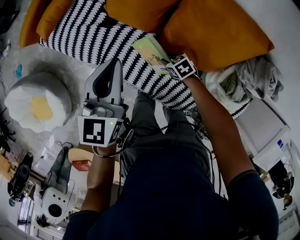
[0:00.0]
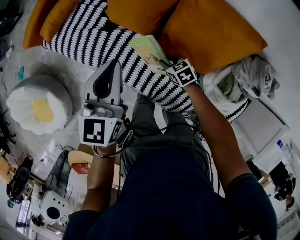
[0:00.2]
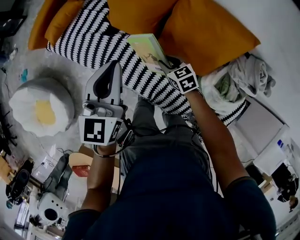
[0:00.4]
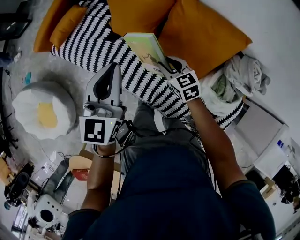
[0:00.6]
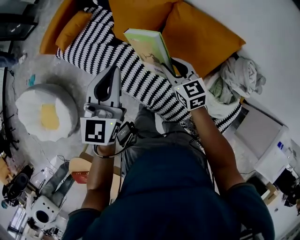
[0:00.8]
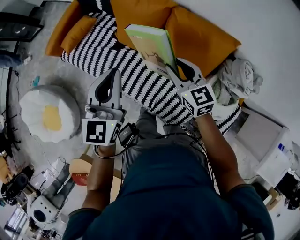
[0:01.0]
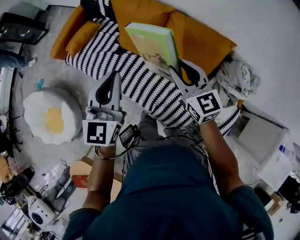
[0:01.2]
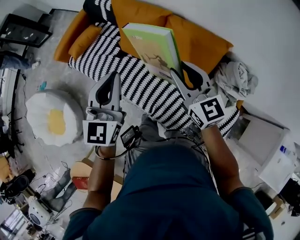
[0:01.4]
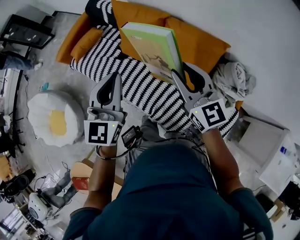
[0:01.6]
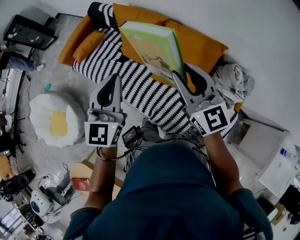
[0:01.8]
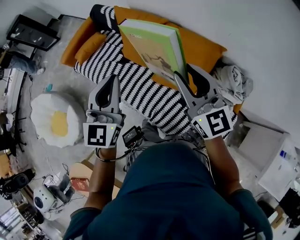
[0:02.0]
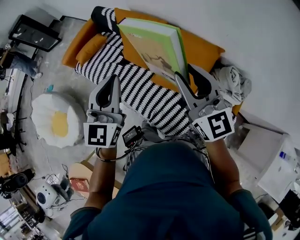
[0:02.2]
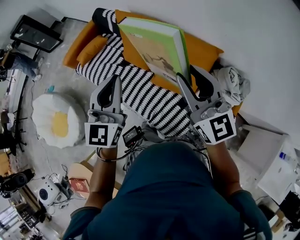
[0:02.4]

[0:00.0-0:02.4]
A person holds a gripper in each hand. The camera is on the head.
0:00.0 to 0:01.2: The right gripper goes approximately 40 cm upward, and tilts its fingers roughly 50 degrees upward. Meanwhile the left gripper heads upward and backward, covering about 20 cm.
0:01.2 to 0:02.4: The left gripper goes approximately 10 cm upward and backward, while the right gripper is displaced upward and backward by approximately 20 cm, and rotates about 20 degrees.

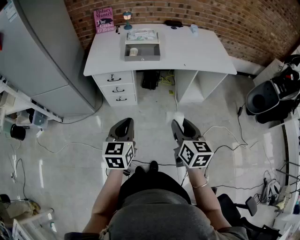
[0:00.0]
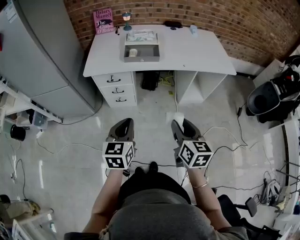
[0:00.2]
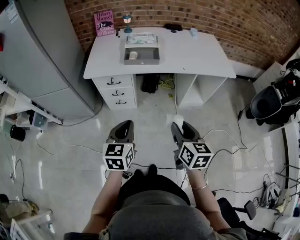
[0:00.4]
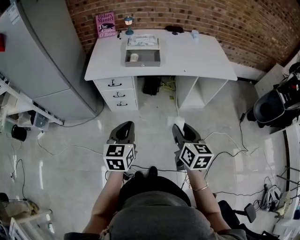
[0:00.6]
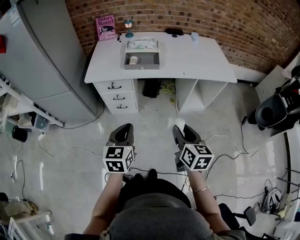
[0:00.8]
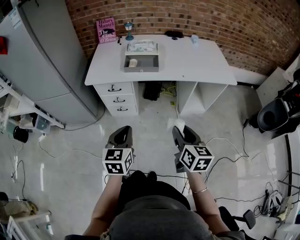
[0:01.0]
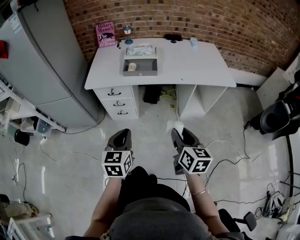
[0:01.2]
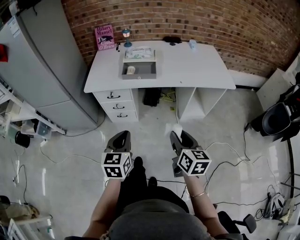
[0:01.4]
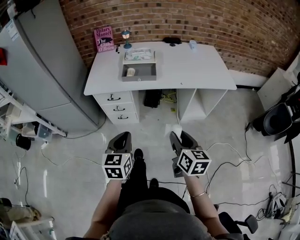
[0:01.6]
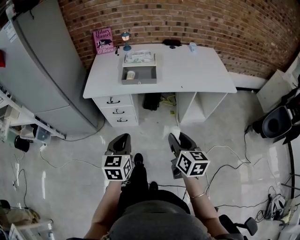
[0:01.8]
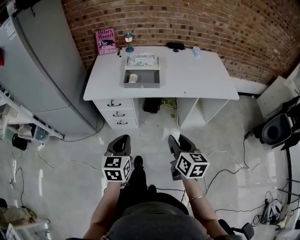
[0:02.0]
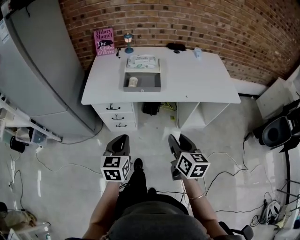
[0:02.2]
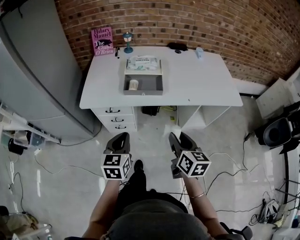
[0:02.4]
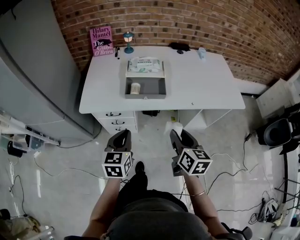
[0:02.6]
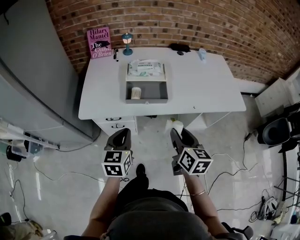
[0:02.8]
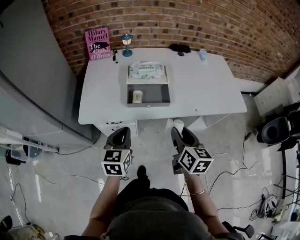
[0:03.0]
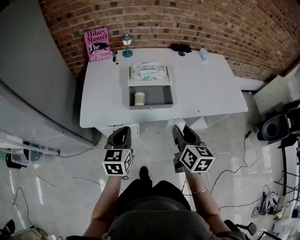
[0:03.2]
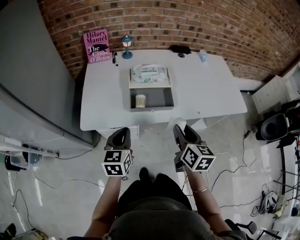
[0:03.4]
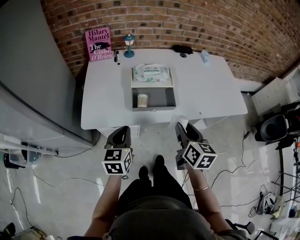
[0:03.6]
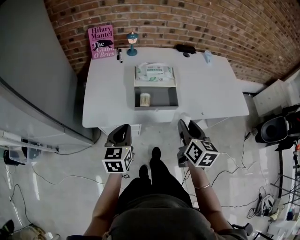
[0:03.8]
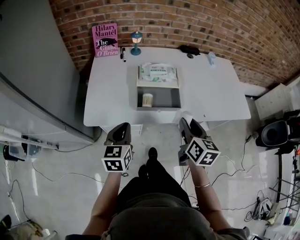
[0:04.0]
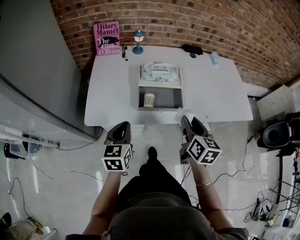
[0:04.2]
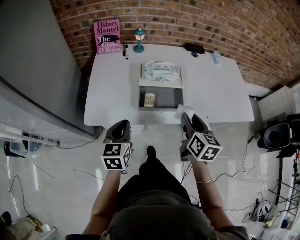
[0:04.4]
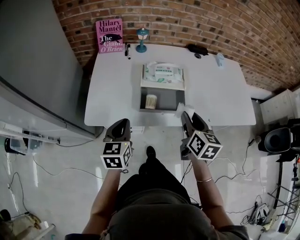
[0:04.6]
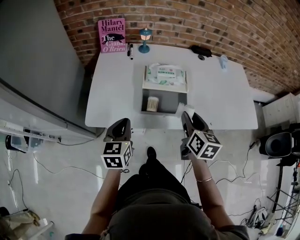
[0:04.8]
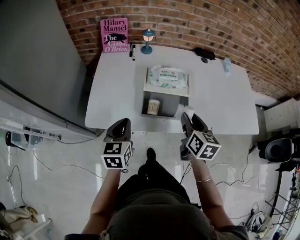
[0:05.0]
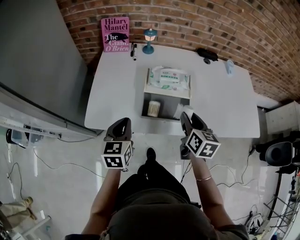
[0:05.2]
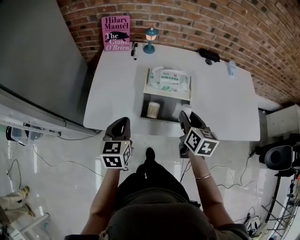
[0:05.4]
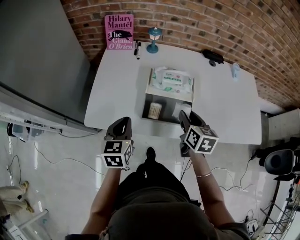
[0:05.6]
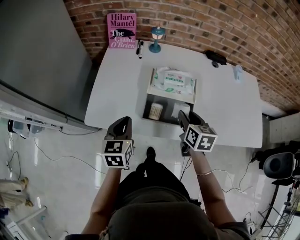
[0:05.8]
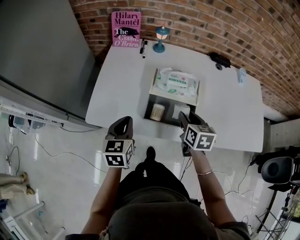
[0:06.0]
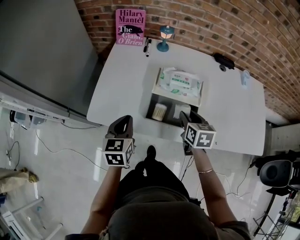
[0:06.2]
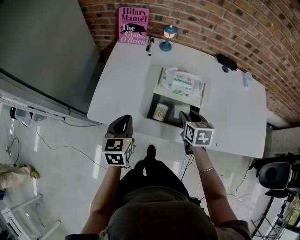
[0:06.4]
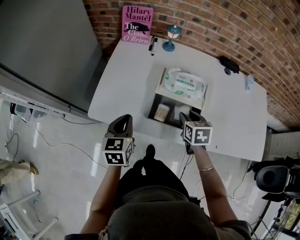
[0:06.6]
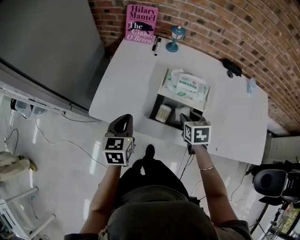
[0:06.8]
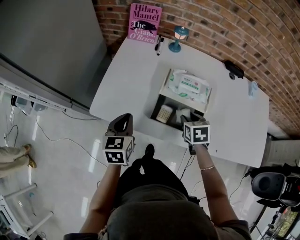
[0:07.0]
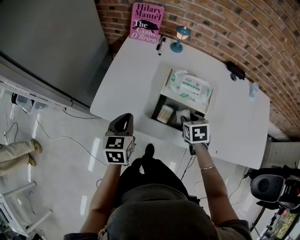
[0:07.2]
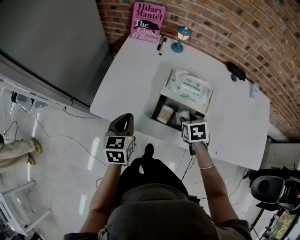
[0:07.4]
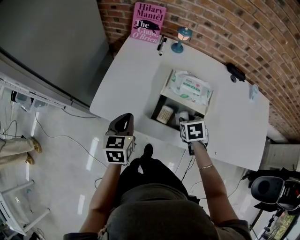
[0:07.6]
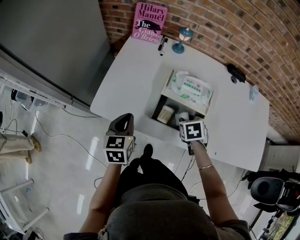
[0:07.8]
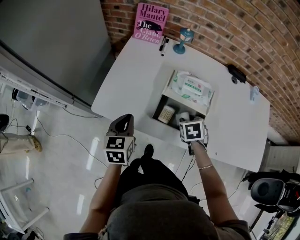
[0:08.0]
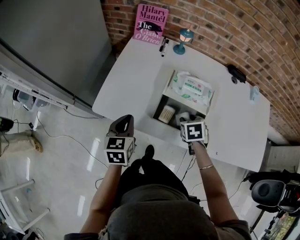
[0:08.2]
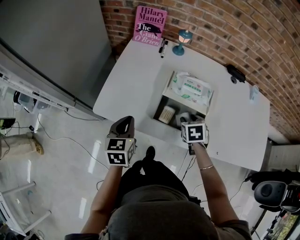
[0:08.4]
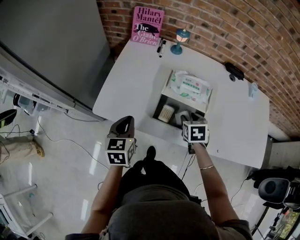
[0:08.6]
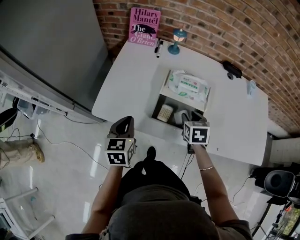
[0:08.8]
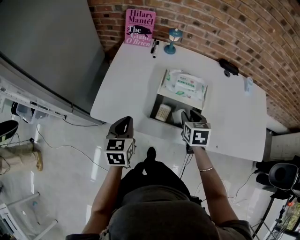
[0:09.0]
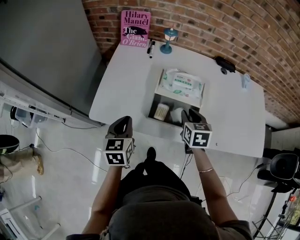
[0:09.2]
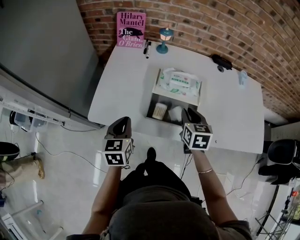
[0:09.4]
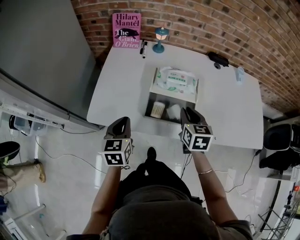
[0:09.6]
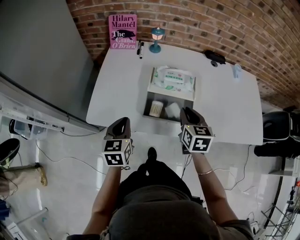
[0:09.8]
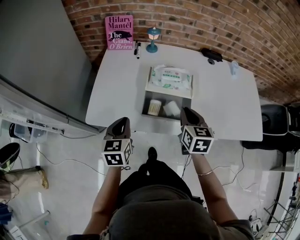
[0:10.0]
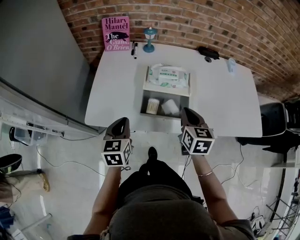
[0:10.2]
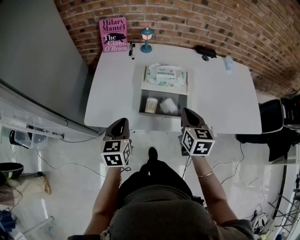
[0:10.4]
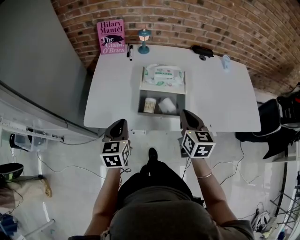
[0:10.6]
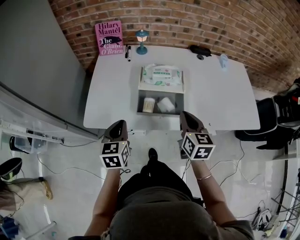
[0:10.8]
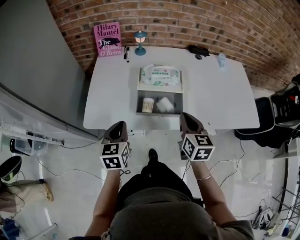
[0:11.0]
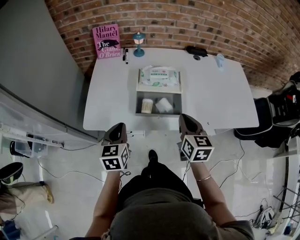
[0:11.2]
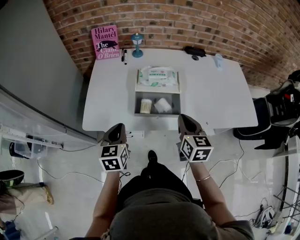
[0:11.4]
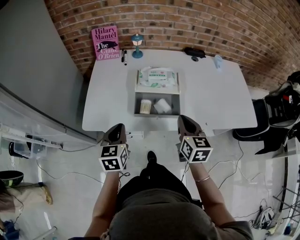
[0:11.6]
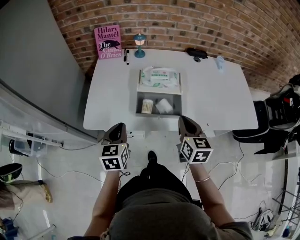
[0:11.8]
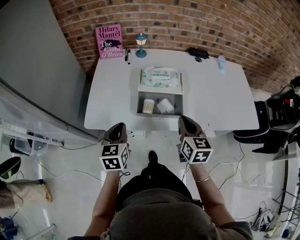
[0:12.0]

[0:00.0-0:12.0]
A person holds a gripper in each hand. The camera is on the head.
0:00.0 to 0:01.6: The right gripper changes place by some 5 cm.
0:01.6 to 0:03.0: Both grippers move forward, some 25 cm.
0:03.0 to 0:04.4: The right gripper is displaced forward by about 10 cm; the left gripper travels forward and to the left by about 10 cm.
0:04.4 to 0:06.0: The left gripper heads forward, covering about 5 cm; the right gripper moves forward and downward, roughly 15 cm, and rotates about 20 degrees.
0:06.0 to 0:07.6: The right gripper heads downward, covering approximately 10 cm, and turns by approximately 40 degrees.
0:07.6 to 0:09.0: The right gripper moves upward, roughly 5 cm, and turns by roughly 20 degrees.
0:09.0 to 0:10.4: The right gripper is displaced backward and upward by roughly 10 cm, turns by approximately 20 degrees, and closes its fingers.
0:10.4 to 0:12.0: The grippers move only a little.

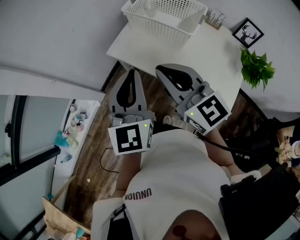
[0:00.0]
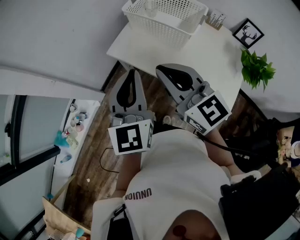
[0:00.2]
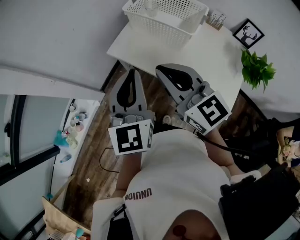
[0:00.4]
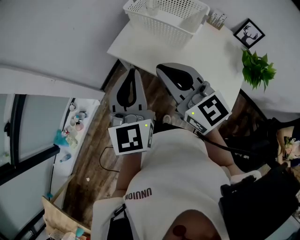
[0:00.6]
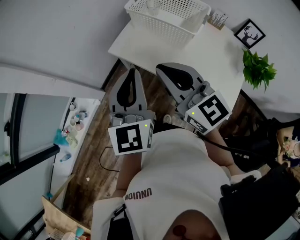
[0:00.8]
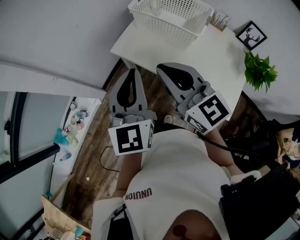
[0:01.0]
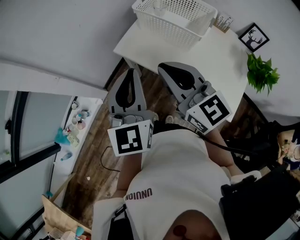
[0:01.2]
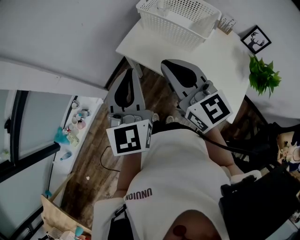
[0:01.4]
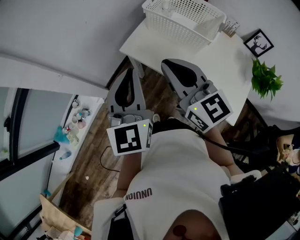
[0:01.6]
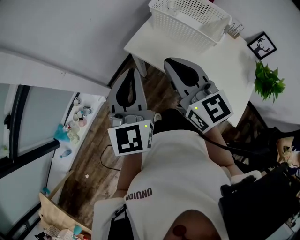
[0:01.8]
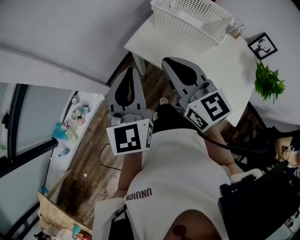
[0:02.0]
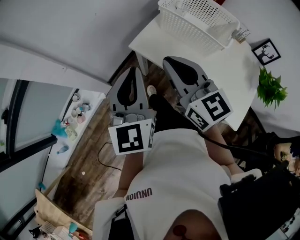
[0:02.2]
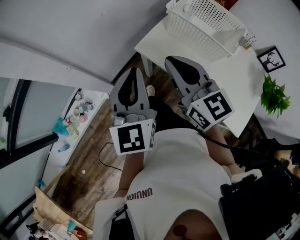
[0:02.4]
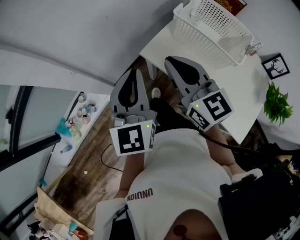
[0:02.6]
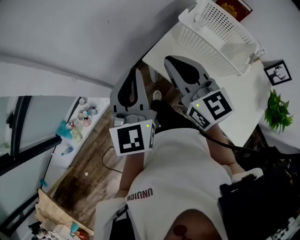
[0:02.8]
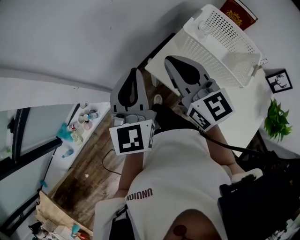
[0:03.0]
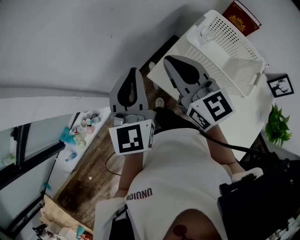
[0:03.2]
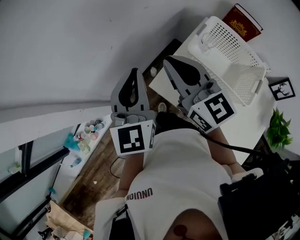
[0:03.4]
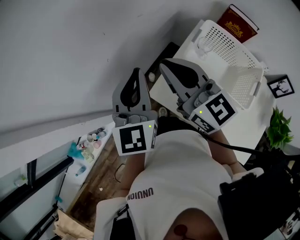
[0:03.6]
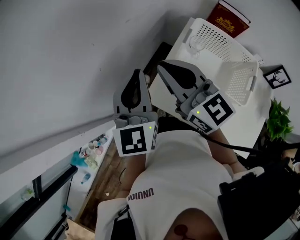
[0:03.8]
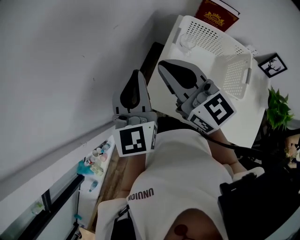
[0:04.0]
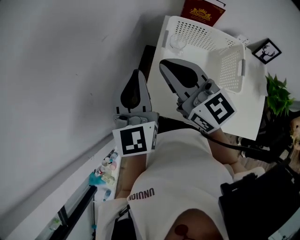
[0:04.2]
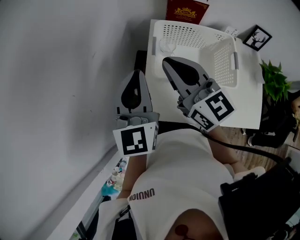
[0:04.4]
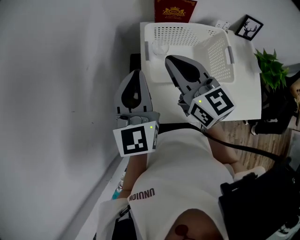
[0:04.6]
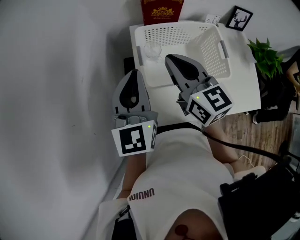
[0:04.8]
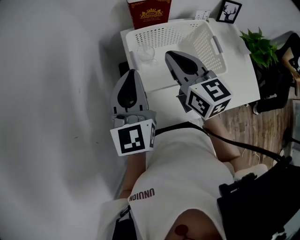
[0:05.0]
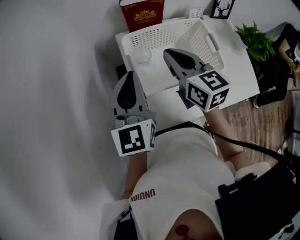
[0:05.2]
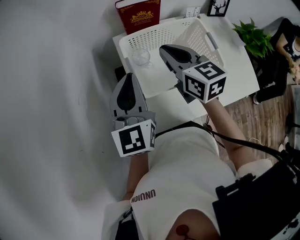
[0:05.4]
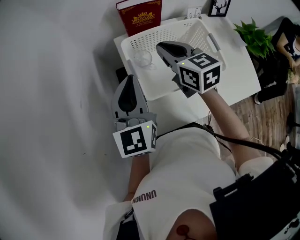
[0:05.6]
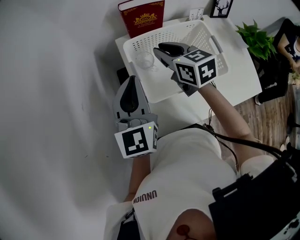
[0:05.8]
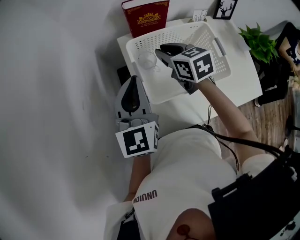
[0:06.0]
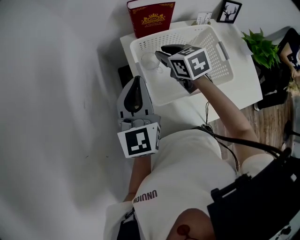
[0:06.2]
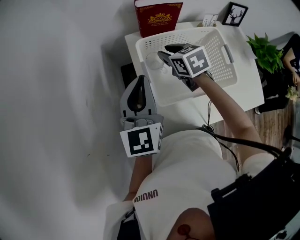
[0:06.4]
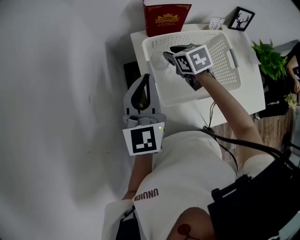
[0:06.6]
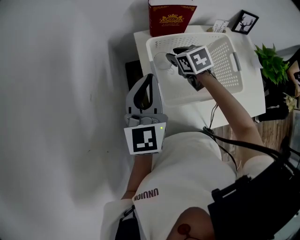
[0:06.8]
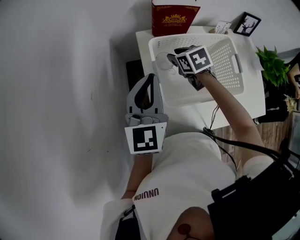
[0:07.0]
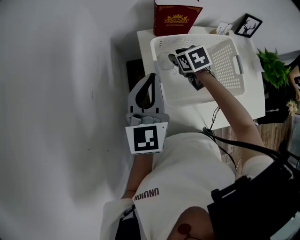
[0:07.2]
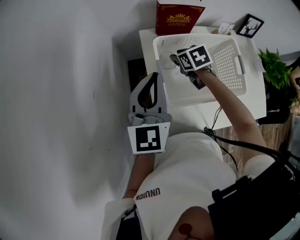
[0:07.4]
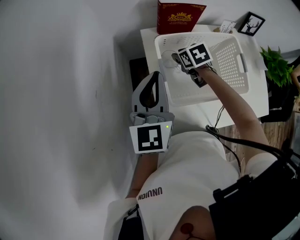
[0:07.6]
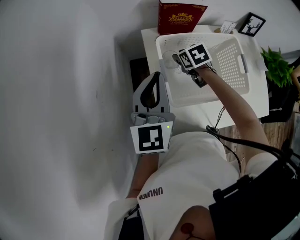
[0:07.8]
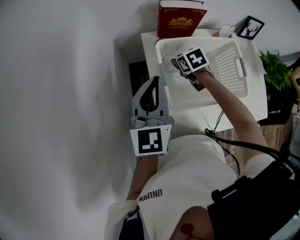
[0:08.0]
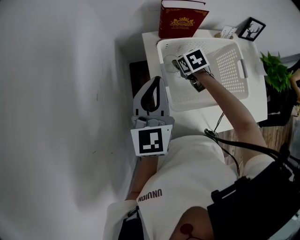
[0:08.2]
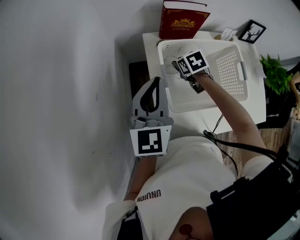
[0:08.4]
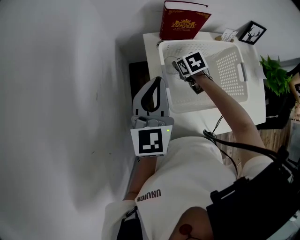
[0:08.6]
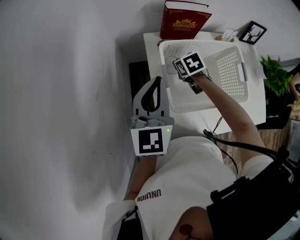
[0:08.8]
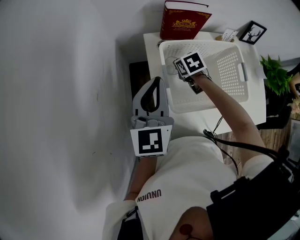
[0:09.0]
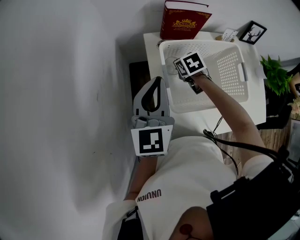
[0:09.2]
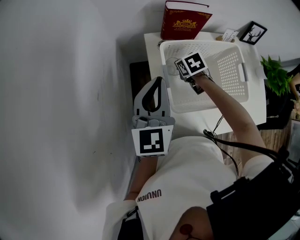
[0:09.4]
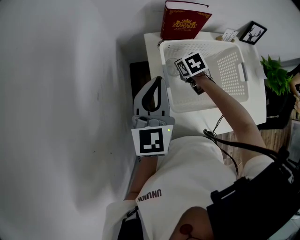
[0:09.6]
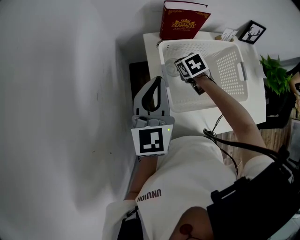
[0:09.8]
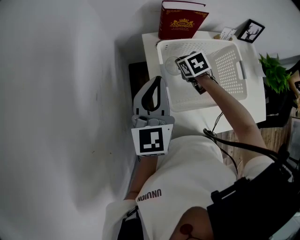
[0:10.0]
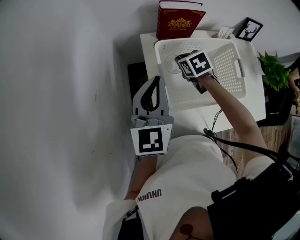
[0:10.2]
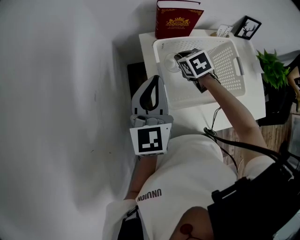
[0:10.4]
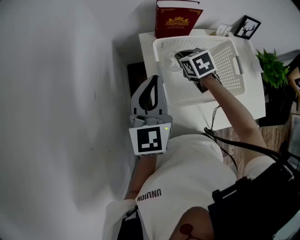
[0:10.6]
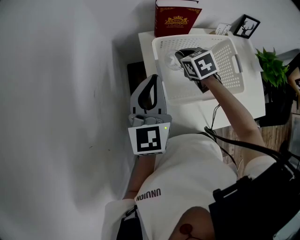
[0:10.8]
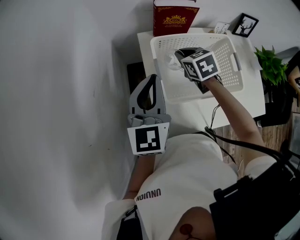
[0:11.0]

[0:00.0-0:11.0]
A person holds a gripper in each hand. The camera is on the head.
0:00.0 to 0:01.6: The left gripper is displaced to the left by roughly 5 cm. Meanwhile the right gripper goes some 5 cm forward.
0:01.6 to 0:03.2: The two grippers go some 25 cm forward.
0:03.2 to 0:04.8: The right gripper ends up some 20 cm from where it was, and swivels approximately 50 degrees; the left gripper moves approximately 25 cm, and rotates about 50 degrees.
0:04.8 to 0:06.2: The right gripper heads downward and forward, covering roughly 20 cm, tips its fingers downward by about 30 degrees, and opens its fingers. Meanwhile the left gripper heads forward, covering some 5 cm.
0:06.2 to 0:07.8: The right gripper heads downward, covering some 10 cm, and turns by about 20 degrees.
0:07.8 to 0:09.4: The right gripper closes its fingers.
0:09.4 to 0:11.0: The right gripper heads upward, covering about 10 cm.
